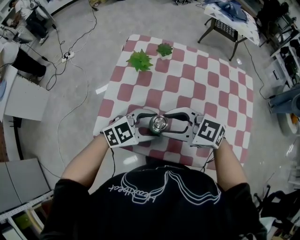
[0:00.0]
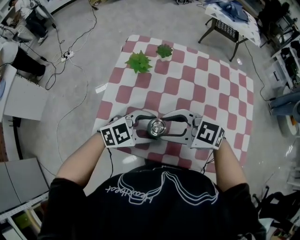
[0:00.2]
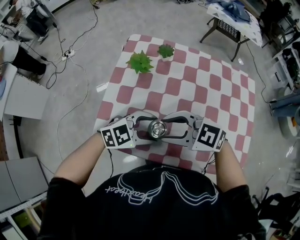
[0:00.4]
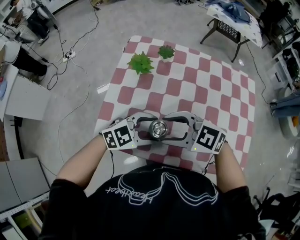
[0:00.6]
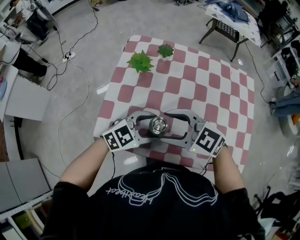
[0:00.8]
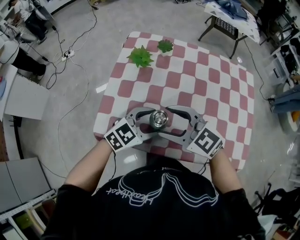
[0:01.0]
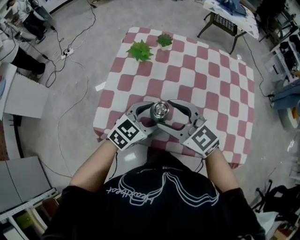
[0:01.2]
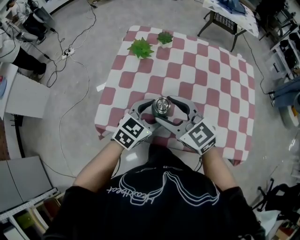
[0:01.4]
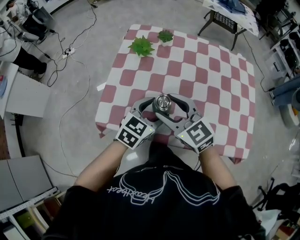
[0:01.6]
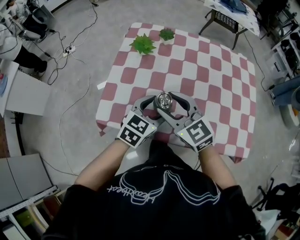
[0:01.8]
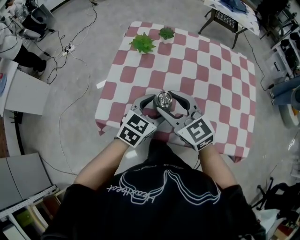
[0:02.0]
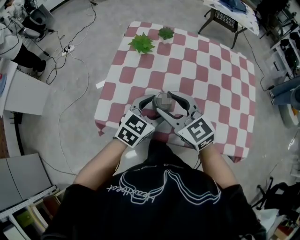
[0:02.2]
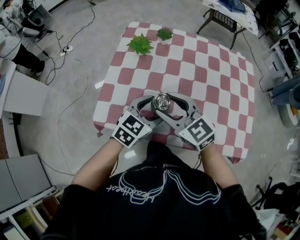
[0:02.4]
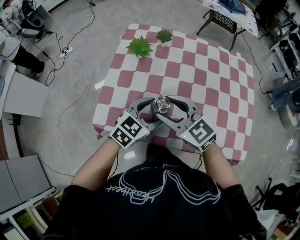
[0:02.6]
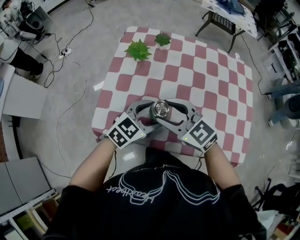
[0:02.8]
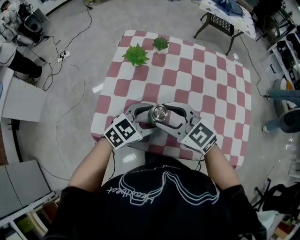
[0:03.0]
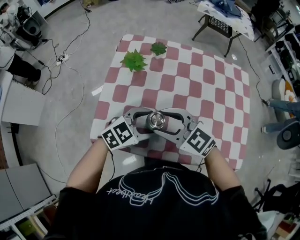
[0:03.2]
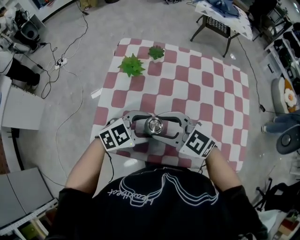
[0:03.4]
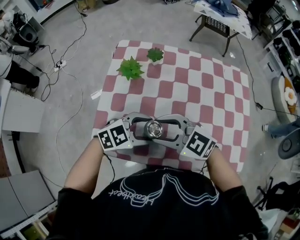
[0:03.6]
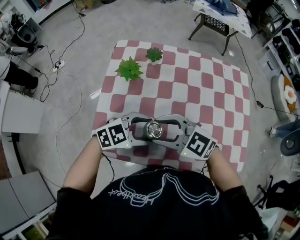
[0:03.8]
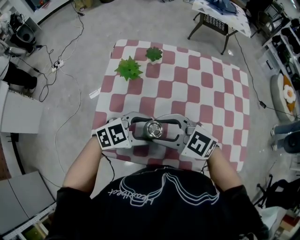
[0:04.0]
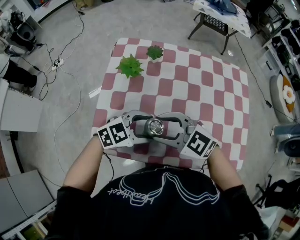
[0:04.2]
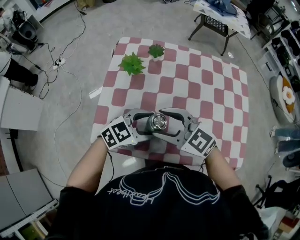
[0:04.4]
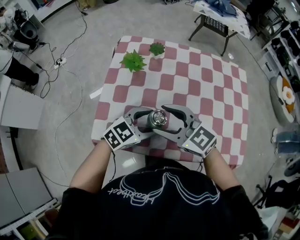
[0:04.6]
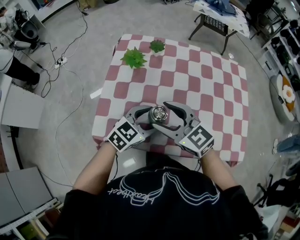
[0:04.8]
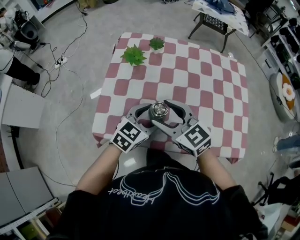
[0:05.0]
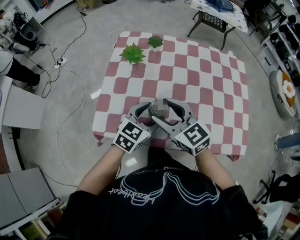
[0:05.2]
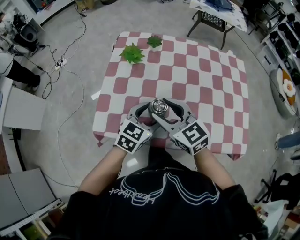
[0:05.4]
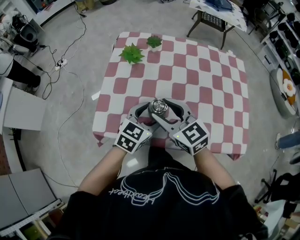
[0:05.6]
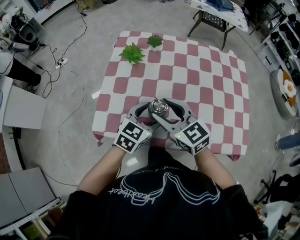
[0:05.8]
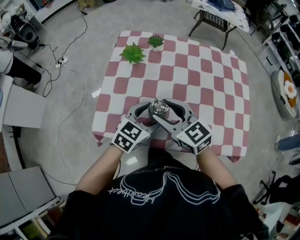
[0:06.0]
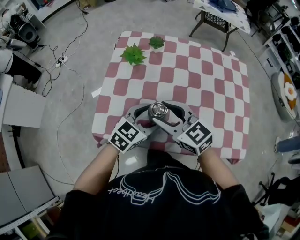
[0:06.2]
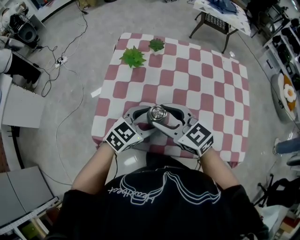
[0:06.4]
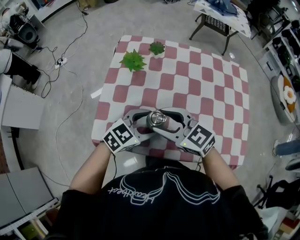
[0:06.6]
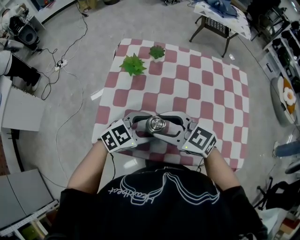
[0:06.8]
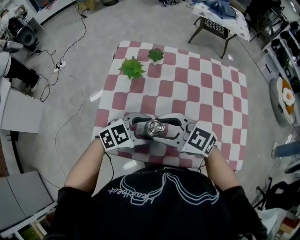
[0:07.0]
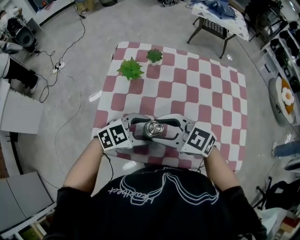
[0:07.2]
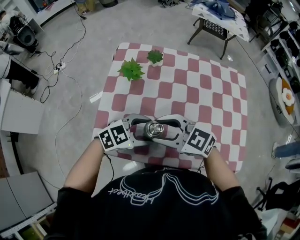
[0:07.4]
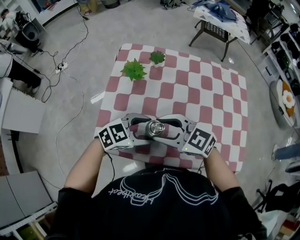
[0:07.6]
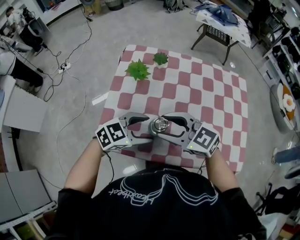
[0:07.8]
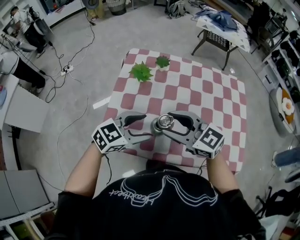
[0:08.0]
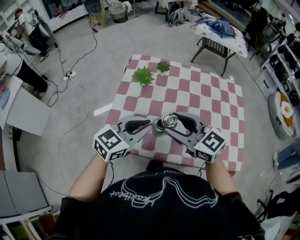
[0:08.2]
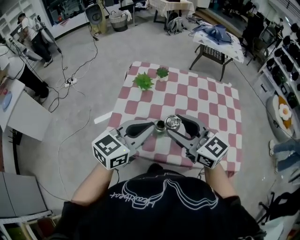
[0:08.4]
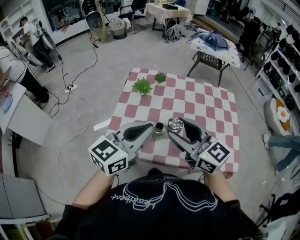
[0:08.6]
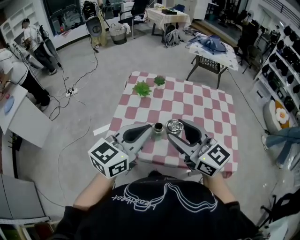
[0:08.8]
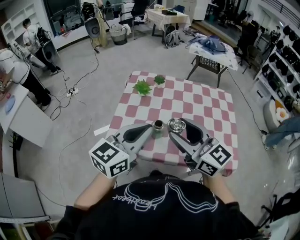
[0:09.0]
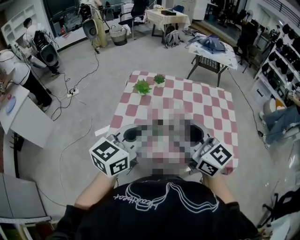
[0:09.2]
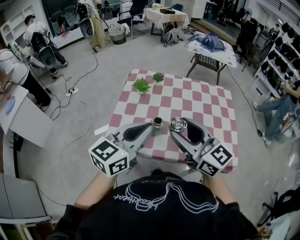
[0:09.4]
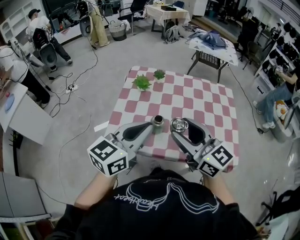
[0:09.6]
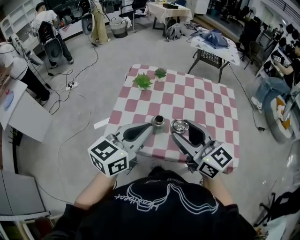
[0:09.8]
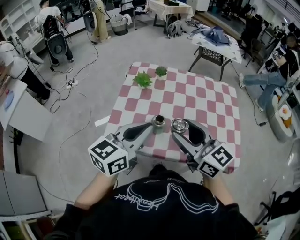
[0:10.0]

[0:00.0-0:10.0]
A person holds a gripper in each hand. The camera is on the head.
0:00.0 to 0:01.4: The left gripper rotates roughly 30 degrees. Meanwhile the right gripper changes its angle by roughly 30 degrees.
0:01.4 to 0:02.8: The grippers move only a little.
0:02.8 to 0:04.2: The left gripper turns by roughly 20 degrees.
0:04.2 to 0:05.8: The right gripper swivels approximately 30 degrees. Meanwhile the left gripper swivels roughly 40 degrees.
0:05.8 to 0:07.2: The left gripper swivels some 40 degrees; the right gripper changes its angle by roughly 30 degrees.
0:07.2 to 0:08.6: Both grippers travel together upward, some 20 cm. The right gripper turns by about 30 degrees. The left gripper swivels some 50 degrees, and closes.
0:08.6 to 0:10.0: The grippers move only a little.

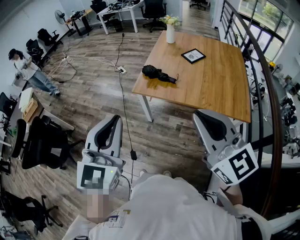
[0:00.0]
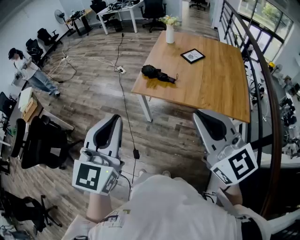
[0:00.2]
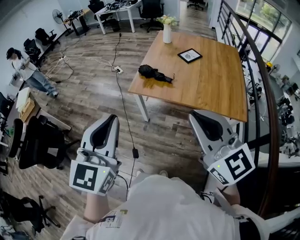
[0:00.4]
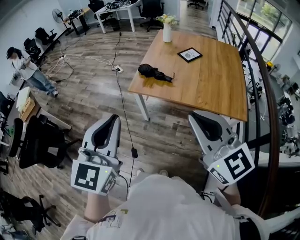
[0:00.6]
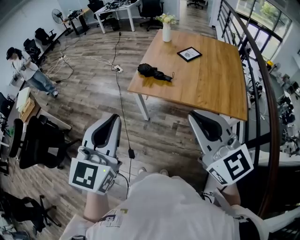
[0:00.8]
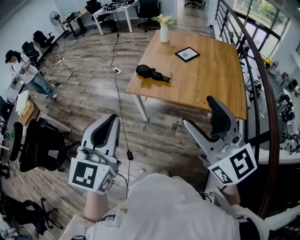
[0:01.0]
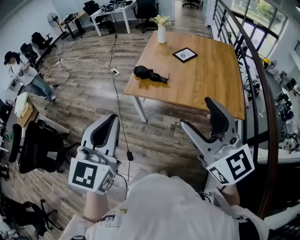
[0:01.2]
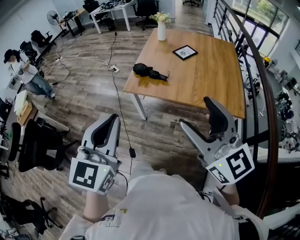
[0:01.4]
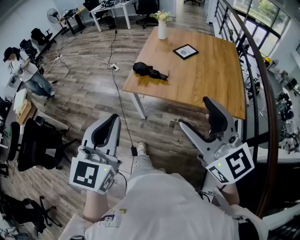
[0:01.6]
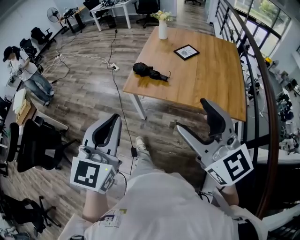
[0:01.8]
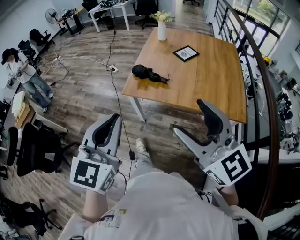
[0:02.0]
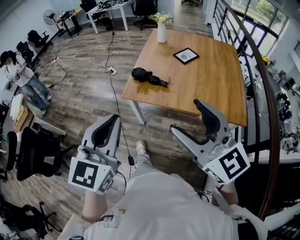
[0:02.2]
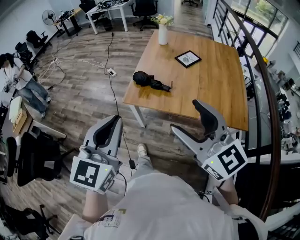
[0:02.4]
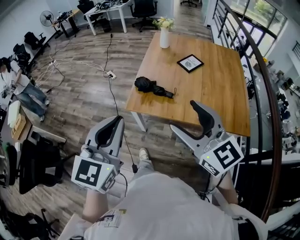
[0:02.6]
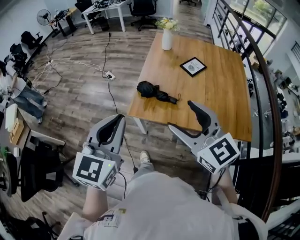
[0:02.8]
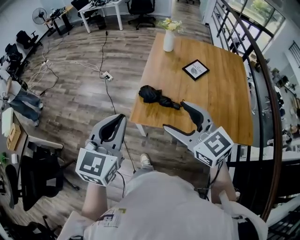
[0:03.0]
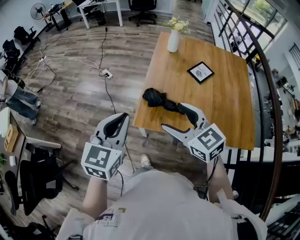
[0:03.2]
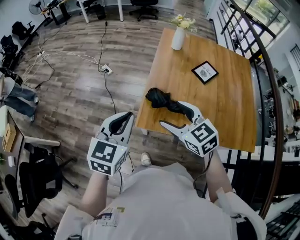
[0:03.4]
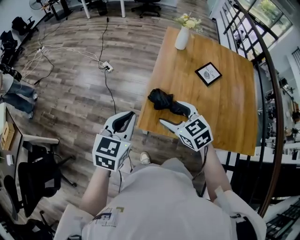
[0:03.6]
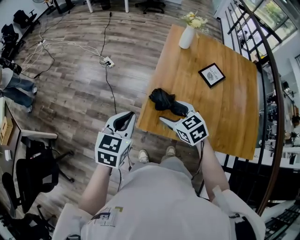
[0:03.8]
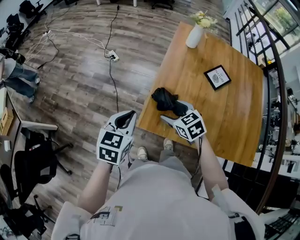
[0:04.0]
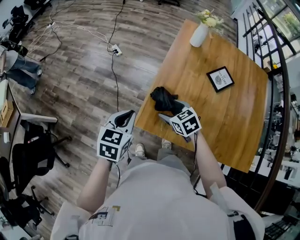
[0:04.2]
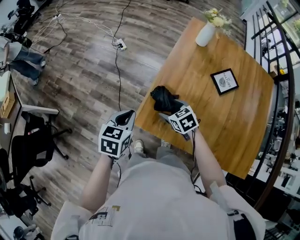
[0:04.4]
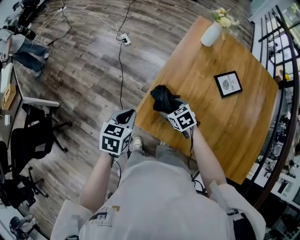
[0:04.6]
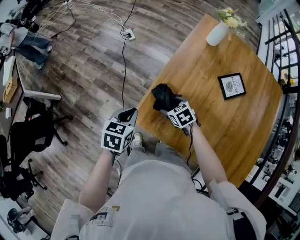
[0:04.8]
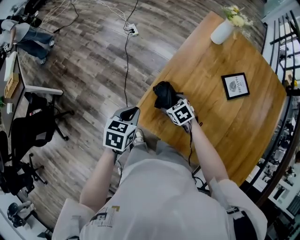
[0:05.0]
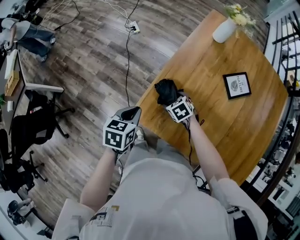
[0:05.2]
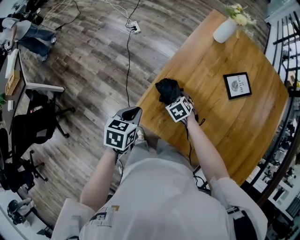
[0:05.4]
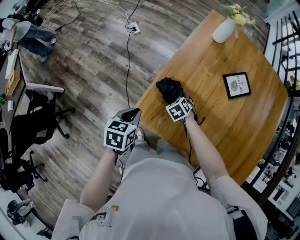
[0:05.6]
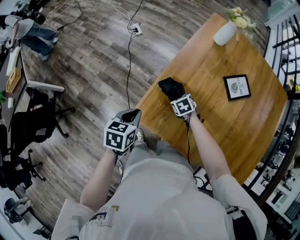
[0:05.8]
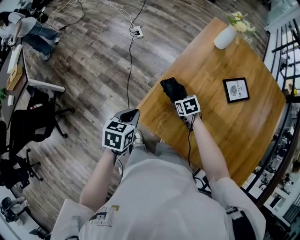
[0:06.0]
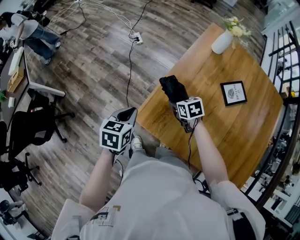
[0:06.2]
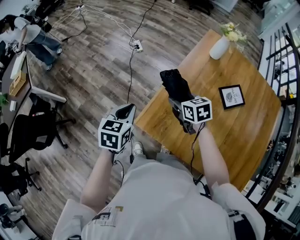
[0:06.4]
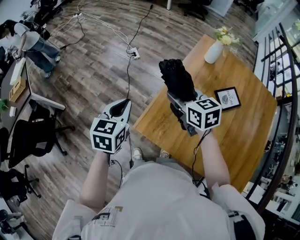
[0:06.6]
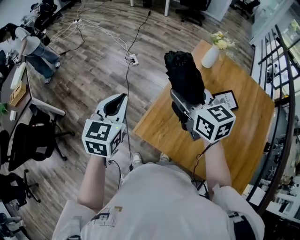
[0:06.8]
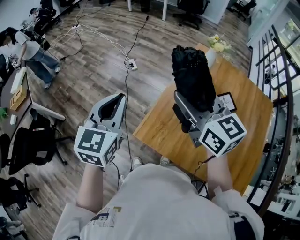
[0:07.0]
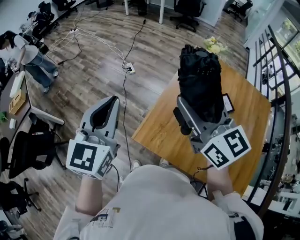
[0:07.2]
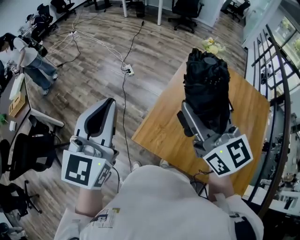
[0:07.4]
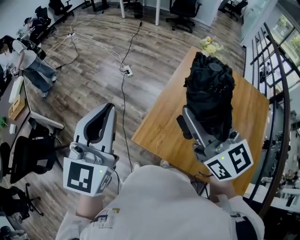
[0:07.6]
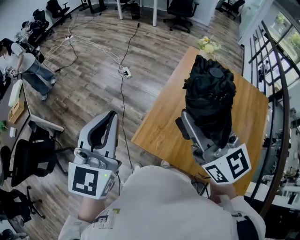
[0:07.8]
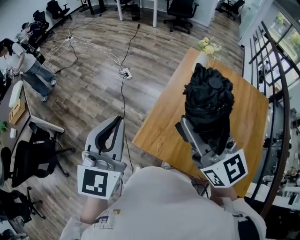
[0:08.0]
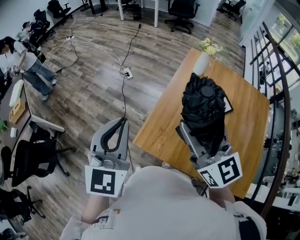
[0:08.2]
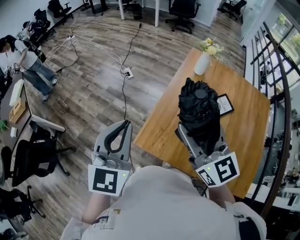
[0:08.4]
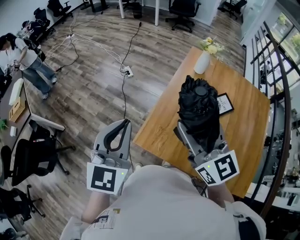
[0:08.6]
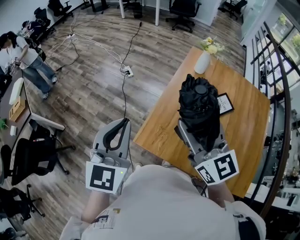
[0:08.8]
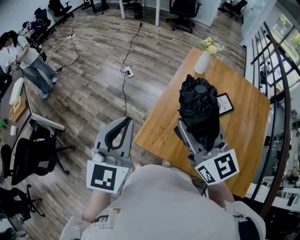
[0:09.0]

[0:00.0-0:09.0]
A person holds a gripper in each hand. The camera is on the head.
0:00.0 to 0:01.6: The right gripper opens its fingers.
0:01.6 to 0:03.0: The two grippers go roughly 35 cm forward.
0:03.0 to 0:04.4: Both grippers travel together downward and forward, roughly 40 cm. The left gripper rotates about 40 degrees. Meanwhile the right gripper tips its fingers downward by roughly 40 degrees.
0:04.4 to 0:06.0: The left gripper heads downward, covering some 5 cm; the right gripper heads downward and forward, covering about 10 cm.
0:06.0 to 0:07.6: The grippers both shift upward by about 40 cm. The left gripper angles its fingers upward, by about 50 degrees. Meanwhile the right gripper tips its fingers upward by approximately 70 degrees.
0:07.6 to 0:09.0: The left gripper moves downward, about 5 cm.

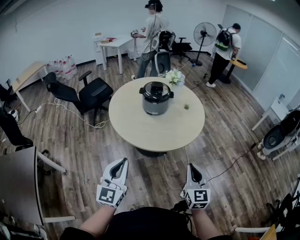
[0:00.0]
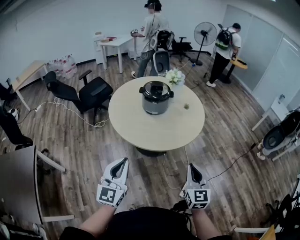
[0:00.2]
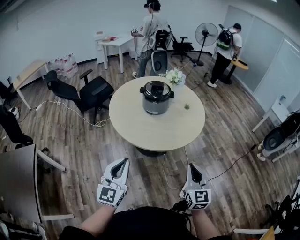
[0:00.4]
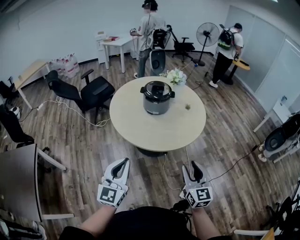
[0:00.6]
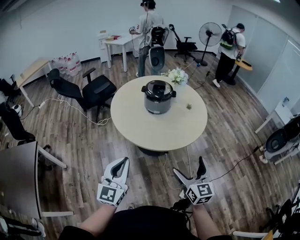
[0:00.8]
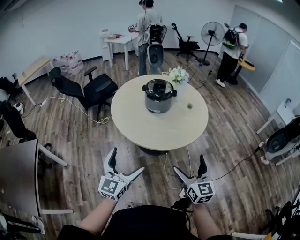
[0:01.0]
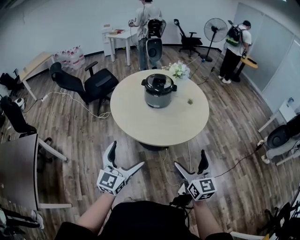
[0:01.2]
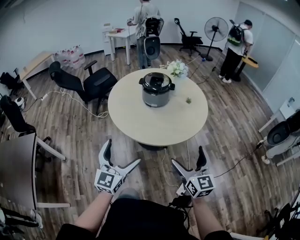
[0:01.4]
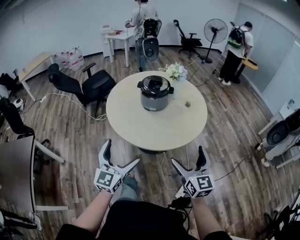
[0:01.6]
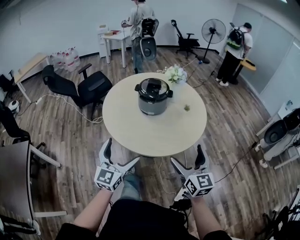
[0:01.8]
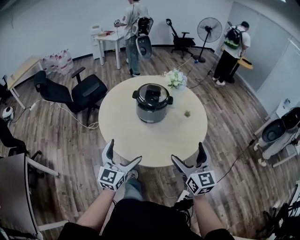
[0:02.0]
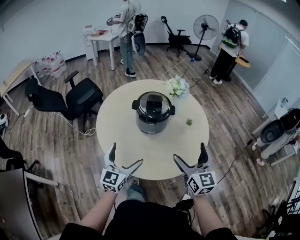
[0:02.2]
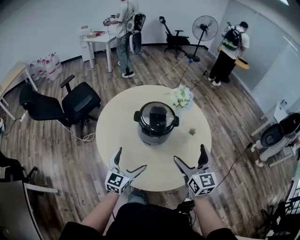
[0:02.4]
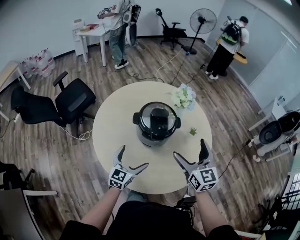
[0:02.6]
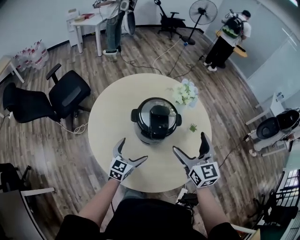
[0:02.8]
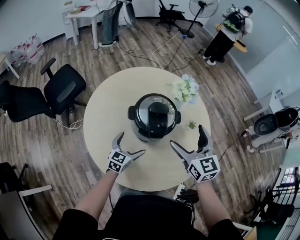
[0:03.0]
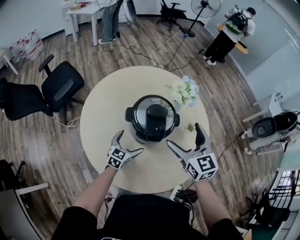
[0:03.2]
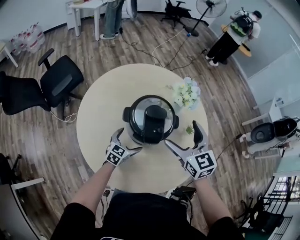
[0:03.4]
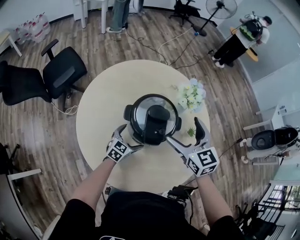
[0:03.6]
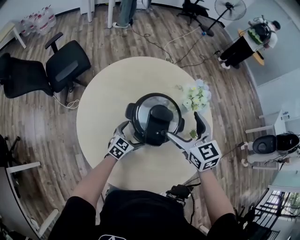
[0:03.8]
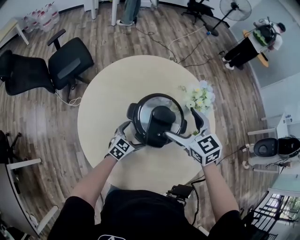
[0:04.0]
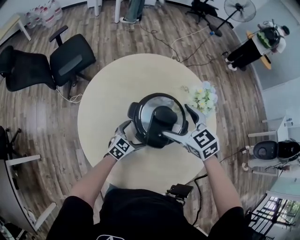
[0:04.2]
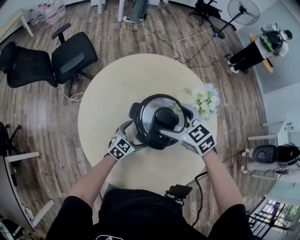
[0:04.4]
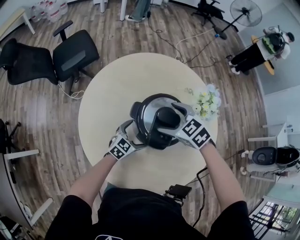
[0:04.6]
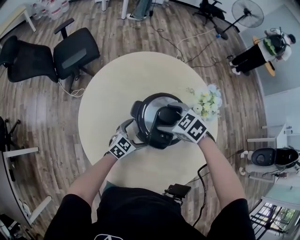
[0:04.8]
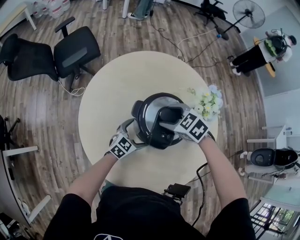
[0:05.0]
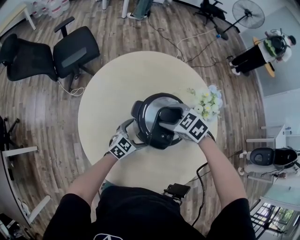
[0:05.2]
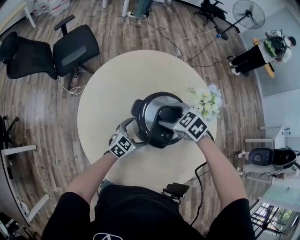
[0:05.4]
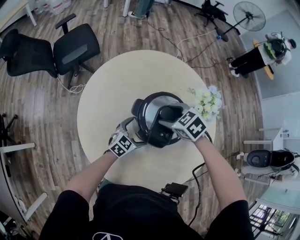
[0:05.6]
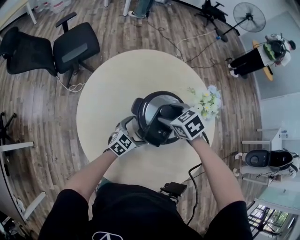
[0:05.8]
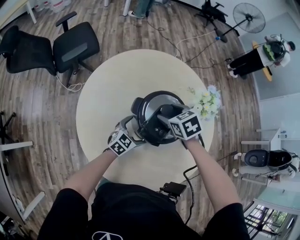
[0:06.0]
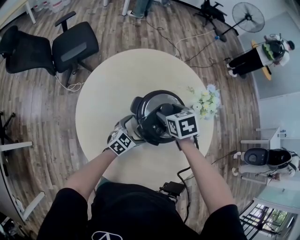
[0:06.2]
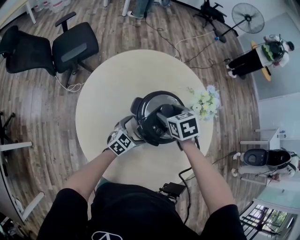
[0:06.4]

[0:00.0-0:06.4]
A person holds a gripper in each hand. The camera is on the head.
0:00.0 to 0:01.6: The left gripper moves forward and to the right, approximately 10 cm, and opens up. The right gripper travels forward by some 10 cm, and opens up.
0:01.6 to 0:03.2: The two grippers travel together, forward, about 50 cm. The left gripper travels downward by some 25 cm, and rotates some 40 degrees.
0:03.2 to 0:04.8: The left gripper ends up roughly 10 cm from where it was; the right gripper travels downward by about 15 cm, and tips its fingers downward by some 40 degrees.
0:04.8 to 0:06.4: The right gripper turns by some 30 degrees.
